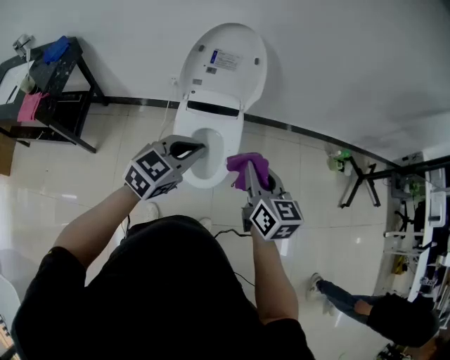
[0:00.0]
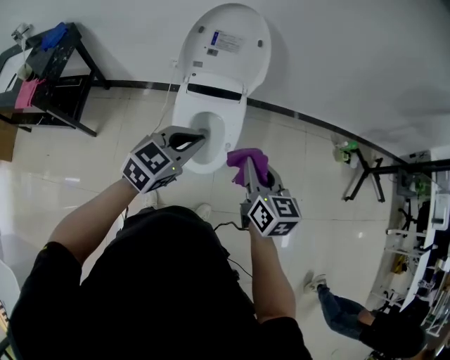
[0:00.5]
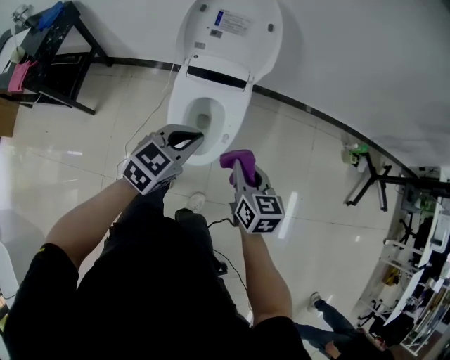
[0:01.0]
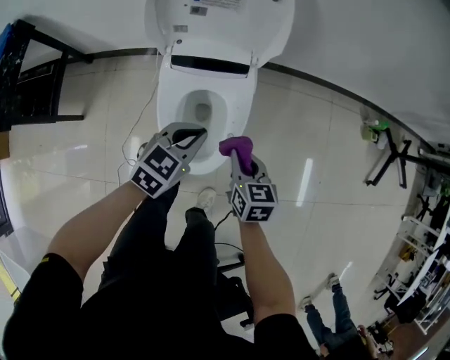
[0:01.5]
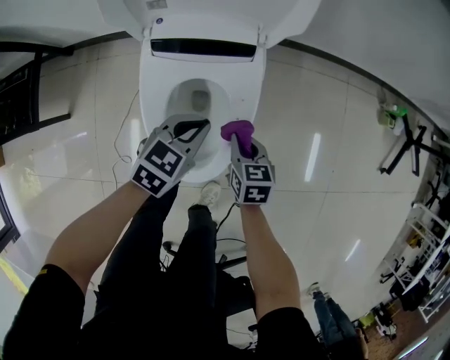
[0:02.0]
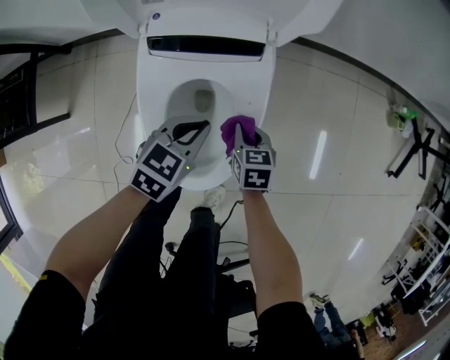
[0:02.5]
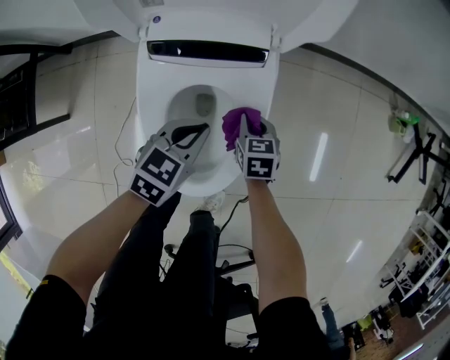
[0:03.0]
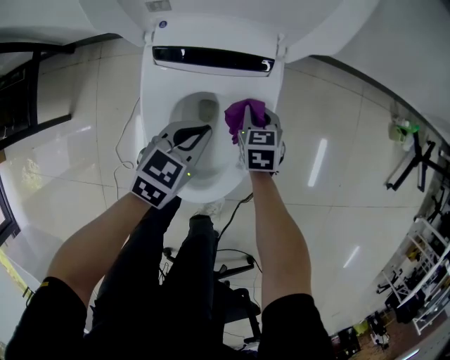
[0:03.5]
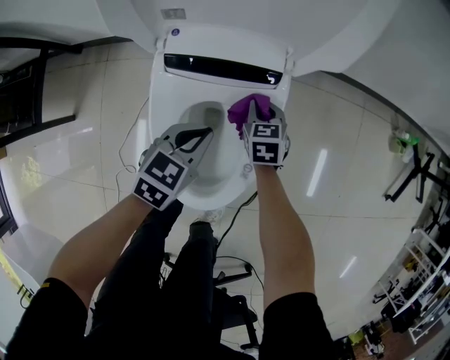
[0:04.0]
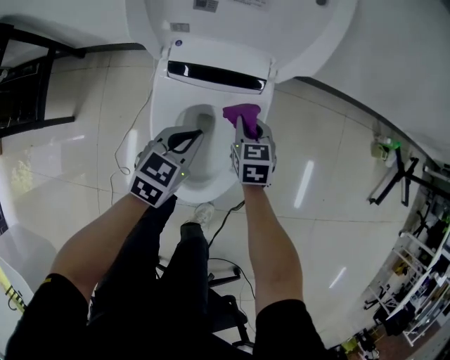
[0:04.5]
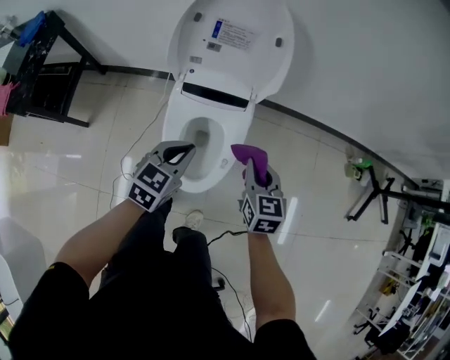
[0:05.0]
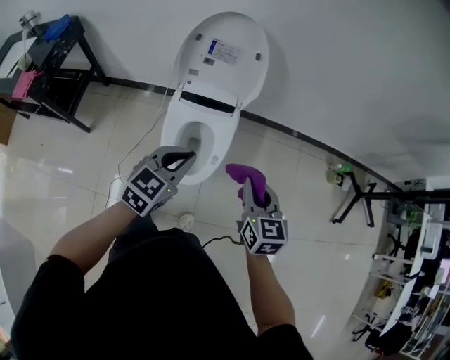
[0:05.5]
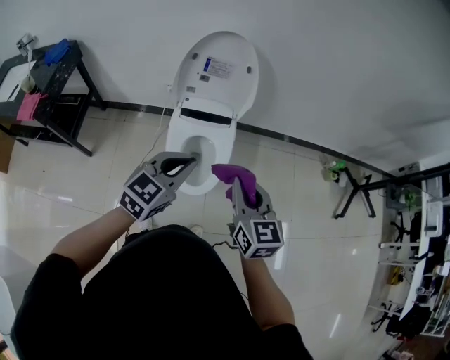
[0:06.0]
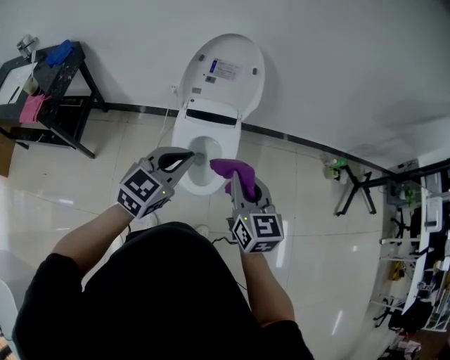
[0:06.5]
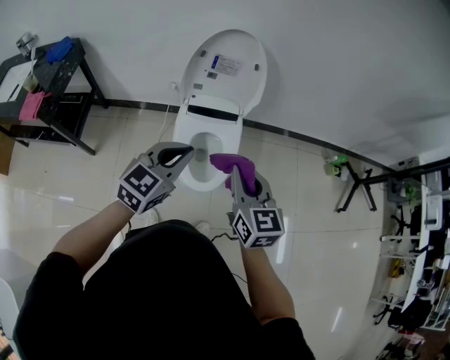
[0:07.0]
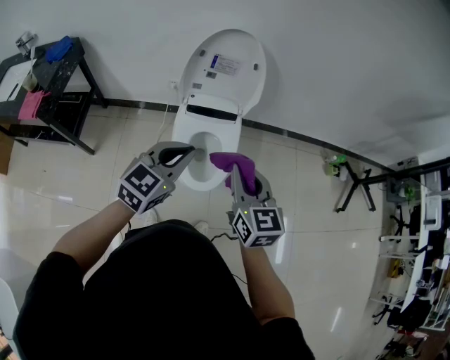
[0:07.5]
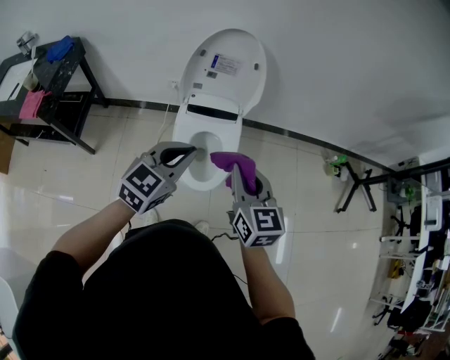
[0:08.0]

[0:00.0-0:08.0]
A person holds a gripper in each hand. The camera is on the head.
0.0 to 2.0 s: The right gripper is displaced downward by roughly 50 cm, and angles its fingers downward, by approximately 30 degrees. Meanwhile the left gripper heads downward and forward, covering roughly 40 cm, and swivels roughly 20 degrees.
2.0 to 4.0 s: The left gripper moves to the left, approximately 5 cm; the right gripper goes roughly 20 cm forward, downward and to the left.
4.0 to 6.0 s: Both grippers move upward and backward, about 60 cm. The left gripper turns by some 30 degrees, while the right gripper tips its fingers upward by approximately 30 degrees.
6.0 to 8.0 s: The right gripper is displaced to the left by about 5 cm.

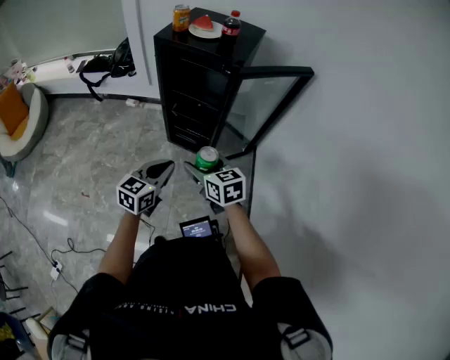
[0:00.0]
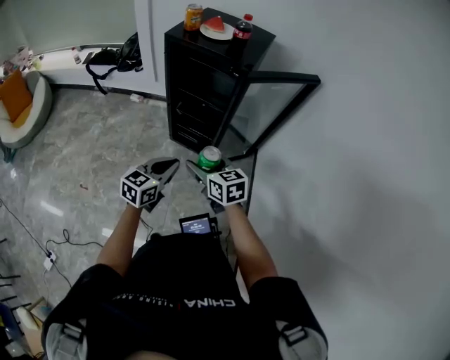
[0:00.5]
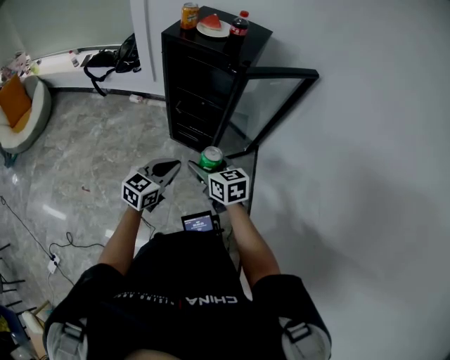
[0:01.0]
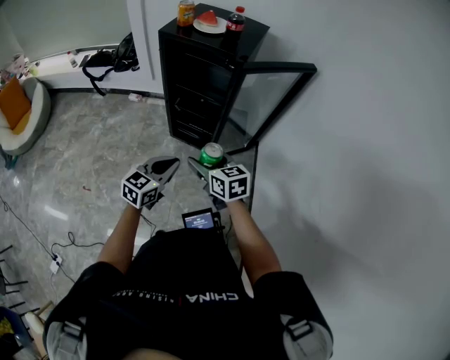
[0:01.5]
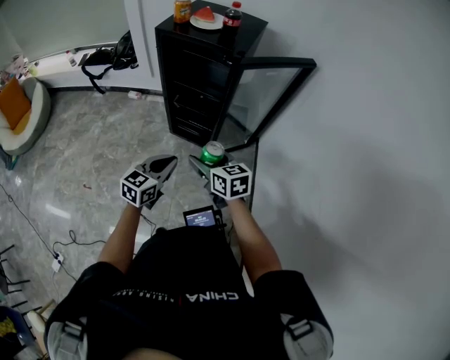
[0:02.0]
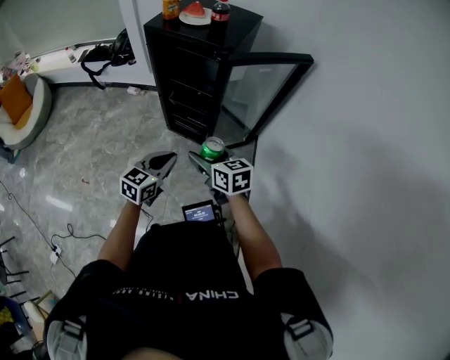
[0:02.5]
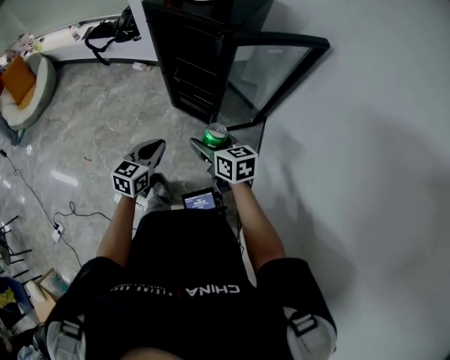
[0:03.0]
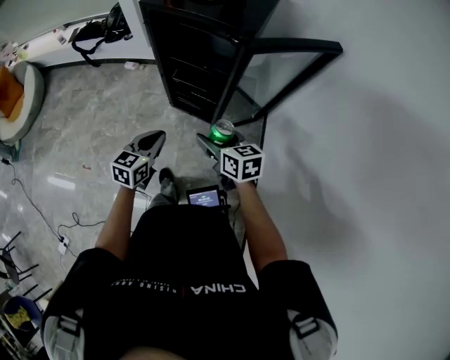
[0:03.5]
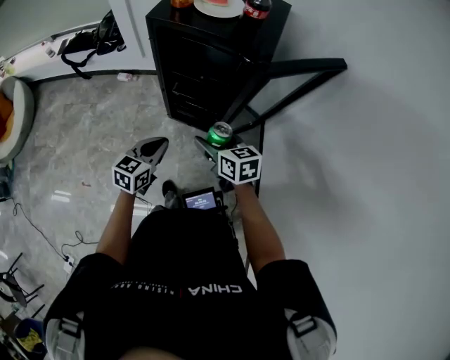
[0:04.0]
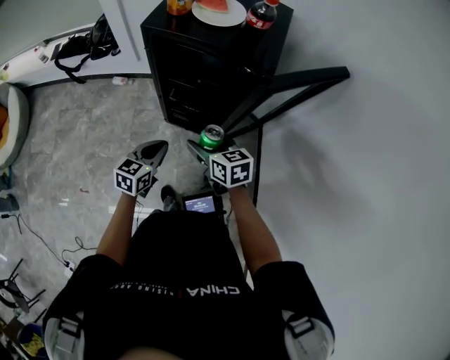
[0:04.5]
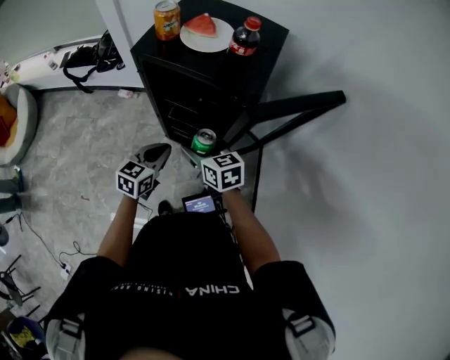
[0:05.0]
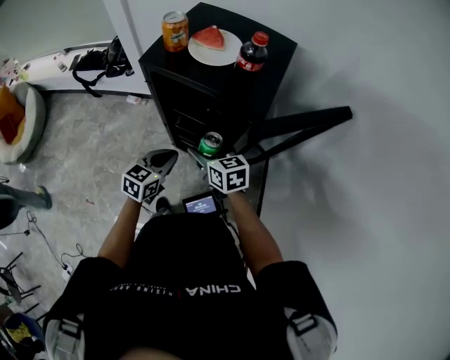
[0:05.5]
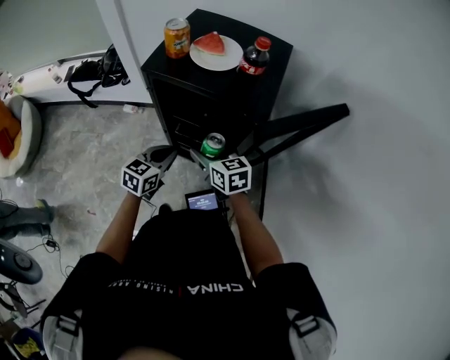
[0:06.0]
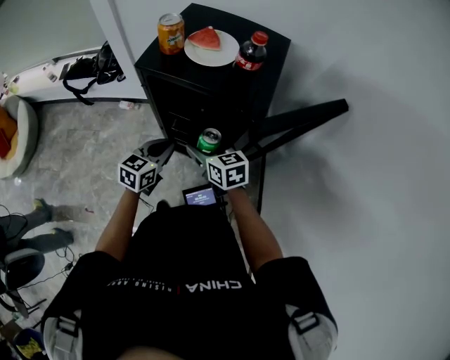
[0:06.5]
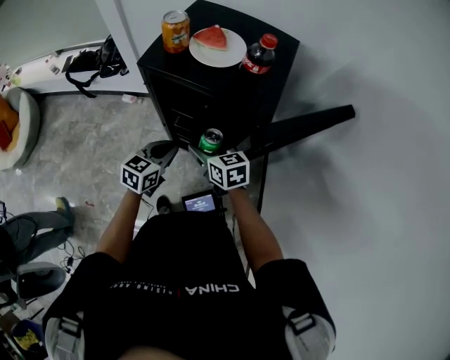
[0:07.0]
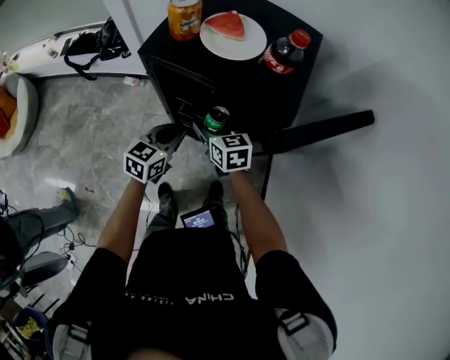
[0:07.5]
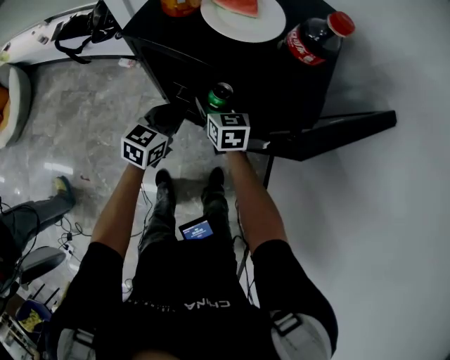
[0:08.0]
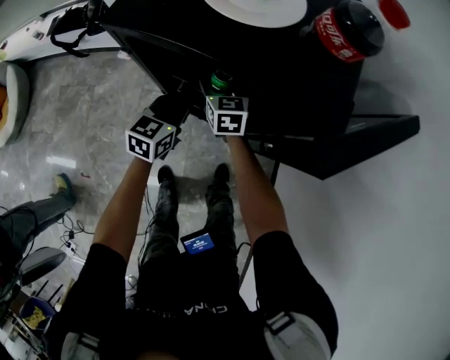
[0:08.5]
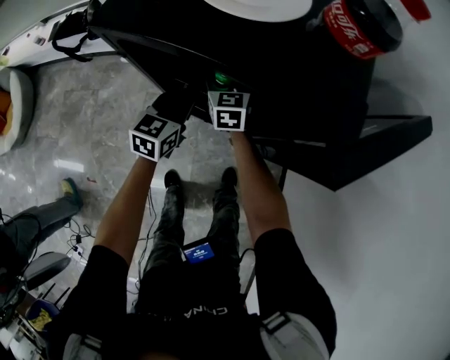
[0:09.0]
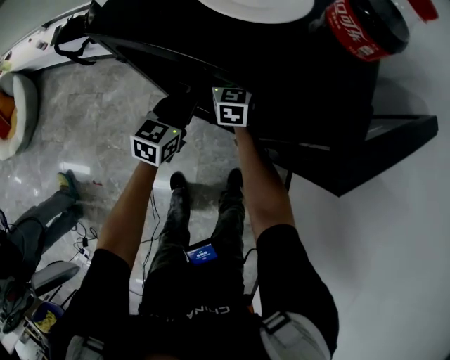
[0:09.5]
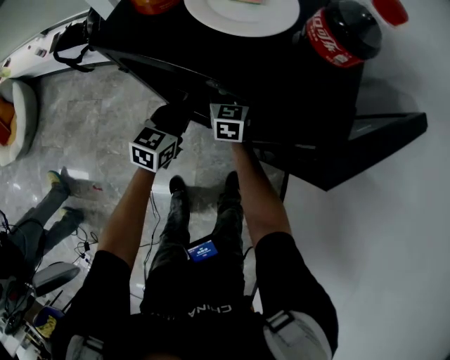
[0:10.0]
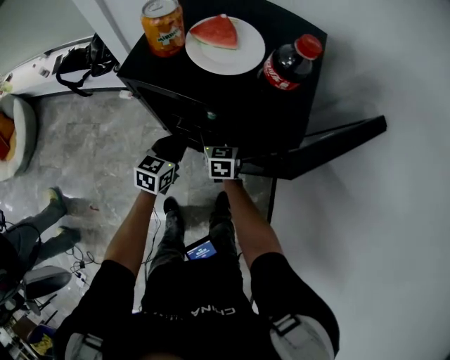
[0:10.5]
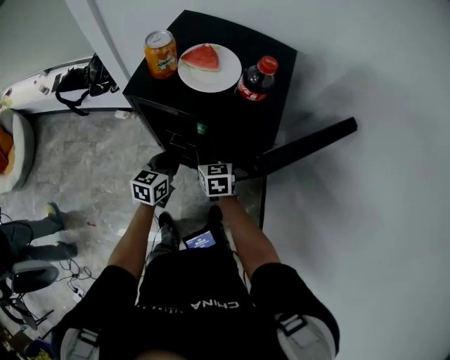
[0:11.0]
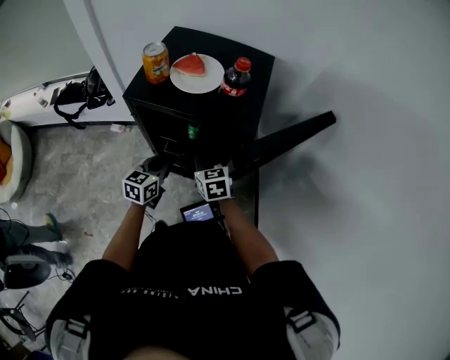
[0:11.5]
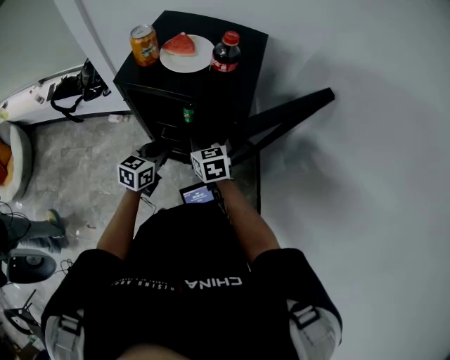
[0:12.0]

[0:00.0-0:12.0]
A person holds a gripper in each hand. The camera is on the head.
0.0 to 2.0 s: There are only small adjustments of the grippers.
2.0 to 4.0 s: The right gripper is displaced forward by approximately 15 cm. Meanwhile the left gripper goes roughly 20 cm forward and to the left.
4.0 to 6.0 s: The grippers both shift forward by some 15 cm.
6.0 to 8.0 s: Both grippers move forward and downward, about 15 cm.
8.0 to 10.0 s: The right gripper heads downward and forward, covering roughly 10 cm. Meanwhile the left gripper is displaced downward by some 5 cm.
10.0 to 12.0 s: The left gripper moves upward and backward, roughly 15 cm. Meanwhile the right gripper heads backward and upward, covering approximately 25 cm, and closes its fingers.

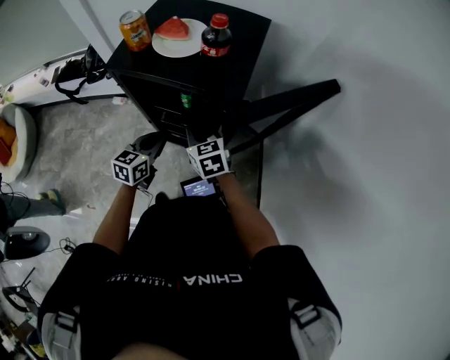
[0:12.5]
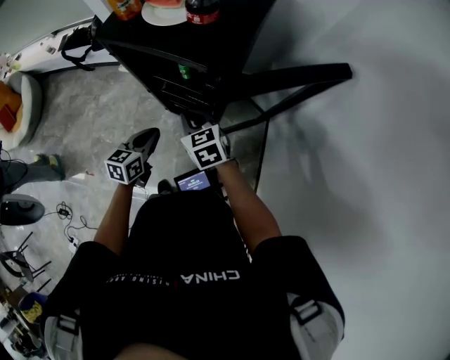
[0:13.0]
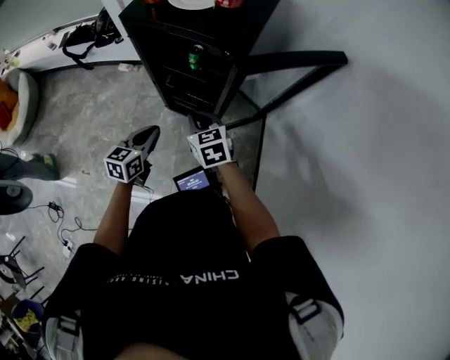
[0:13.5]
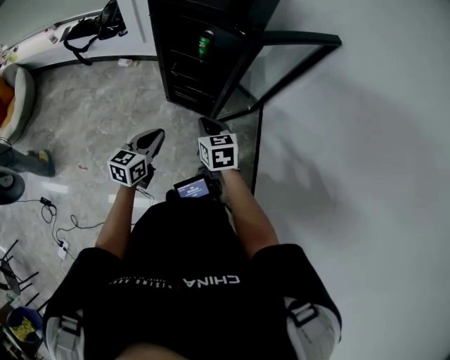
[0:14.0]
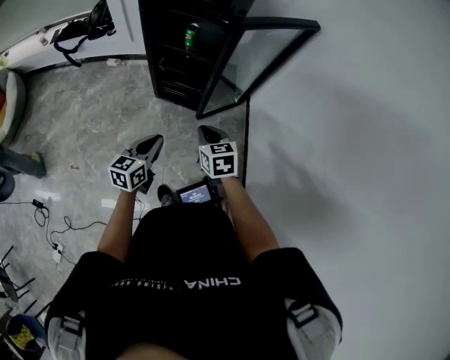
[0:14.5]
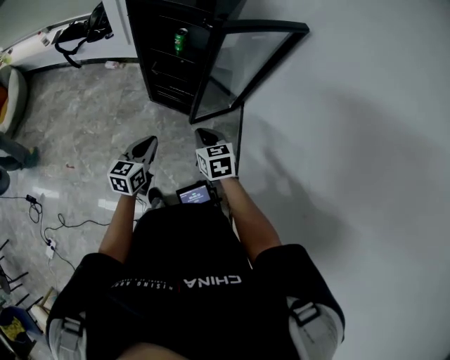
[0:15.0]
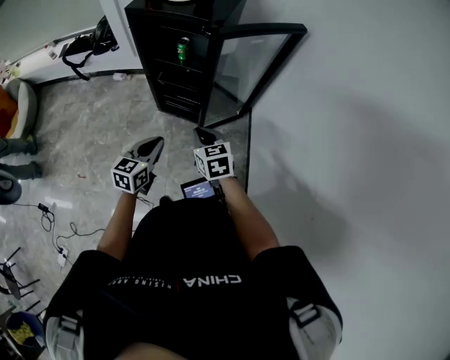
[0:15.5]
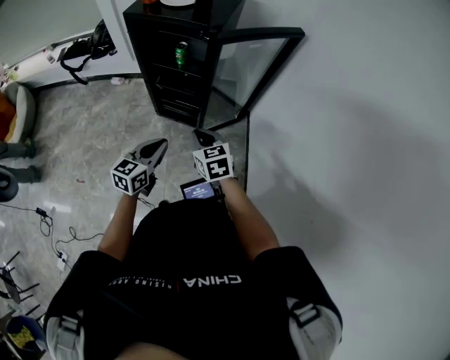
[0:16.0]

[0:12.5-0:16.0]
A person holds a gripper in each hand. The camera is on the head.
12.5 to 14.5 s: The grippers both shift backward by roughly 35 cm.
14.5 to 16.0 s: The left gripper goes about 5 cm to the right. The right gripper moves some 5 cm.

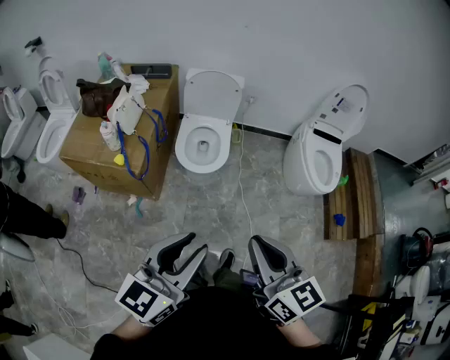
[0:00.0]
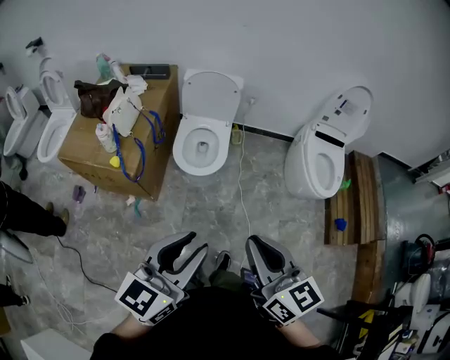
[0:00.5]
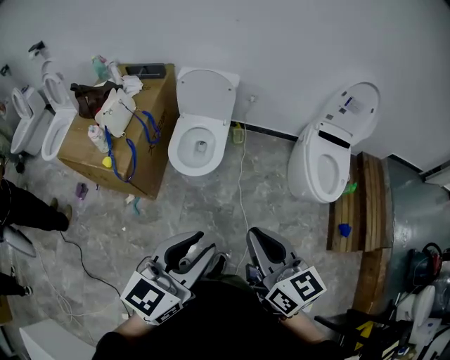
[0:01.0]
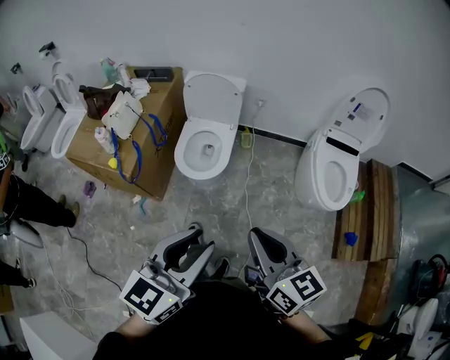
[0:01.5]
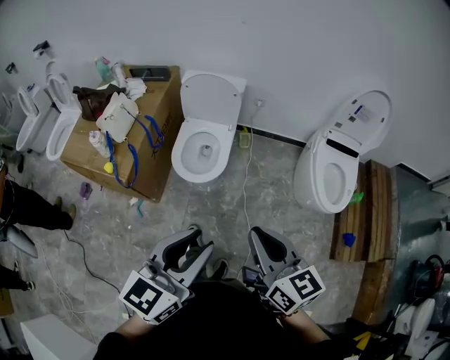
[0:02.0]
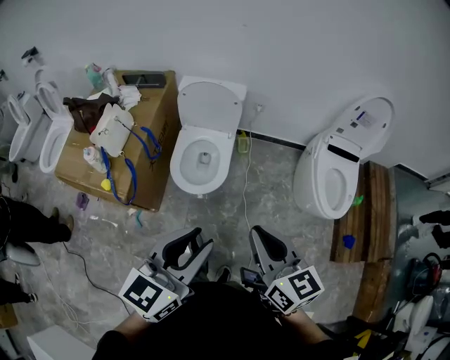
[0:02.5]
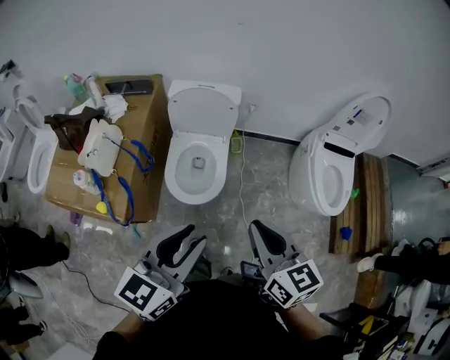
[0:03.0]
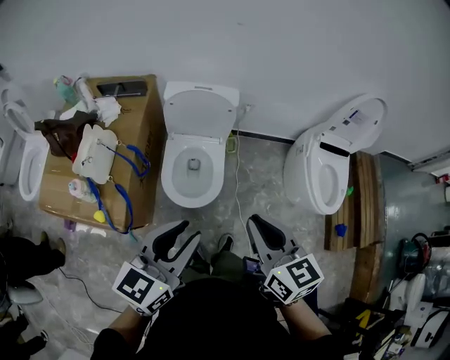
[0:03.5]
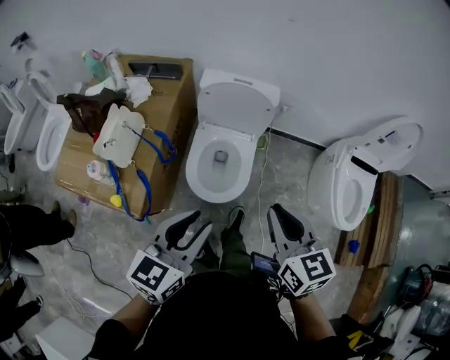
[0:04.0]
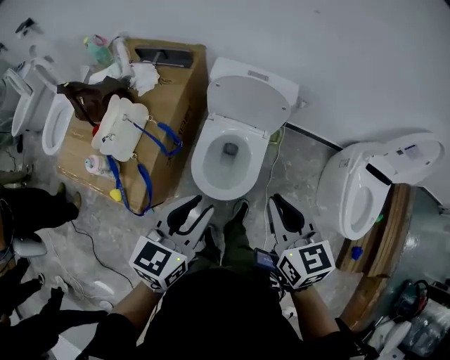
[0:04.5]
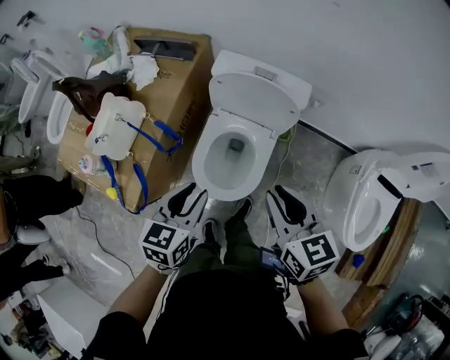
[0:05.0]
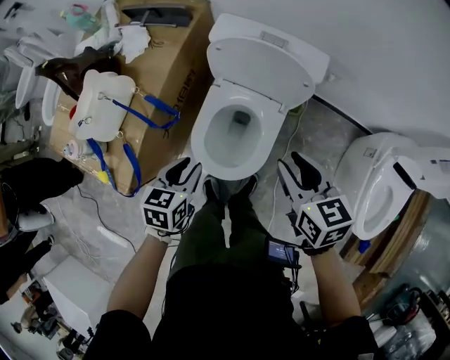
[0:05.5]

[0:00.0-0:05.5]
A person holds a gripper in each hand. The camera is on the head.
0.0 to 2.0 s: The left gripper travels to the right and forward by approximately 20 cm. The right gripper heads forward and to the right, covering roughly 20 cm.
2.0 to 3.5 s: The two grippers go roughly 25 cm forward and to the left.
3.5 to 5.5 s: The left gripper shifts about 40 cm downward and forward, and angles its fingers downward, by approximately 40 degrees. Meanwhile the right gripper shifts approximately 35 cm forward and downward, swivels roughly 20 degrees, and opens up.
